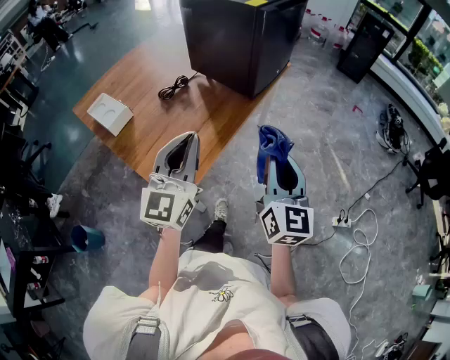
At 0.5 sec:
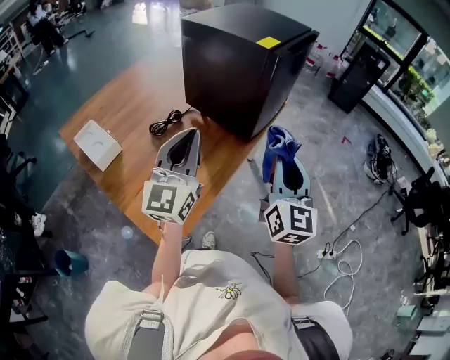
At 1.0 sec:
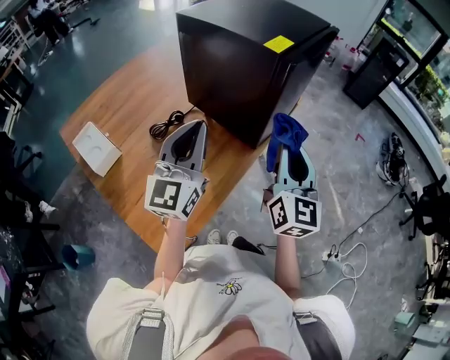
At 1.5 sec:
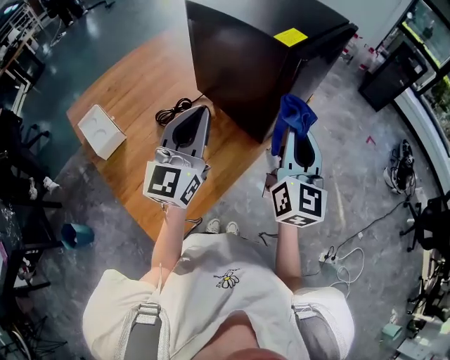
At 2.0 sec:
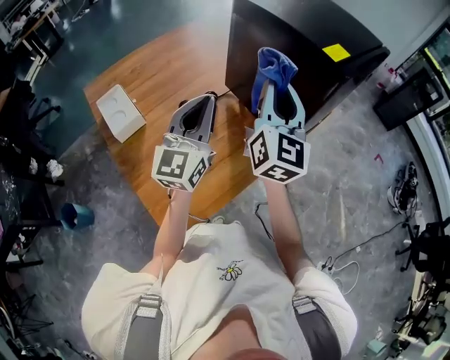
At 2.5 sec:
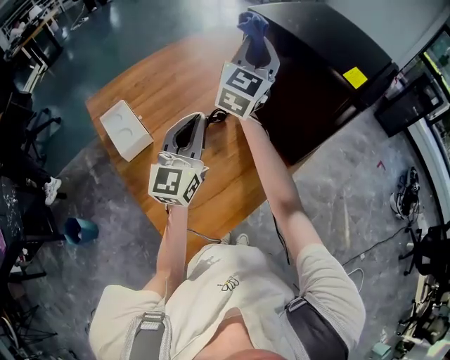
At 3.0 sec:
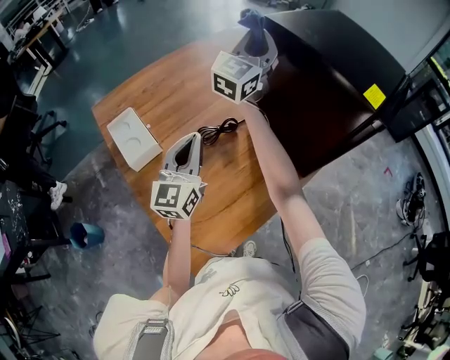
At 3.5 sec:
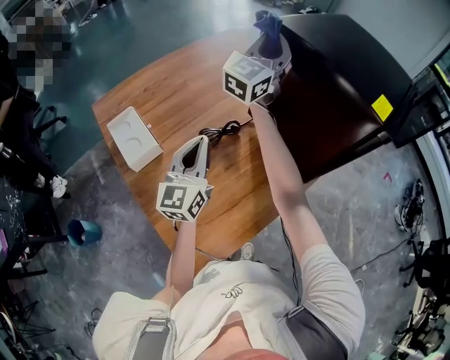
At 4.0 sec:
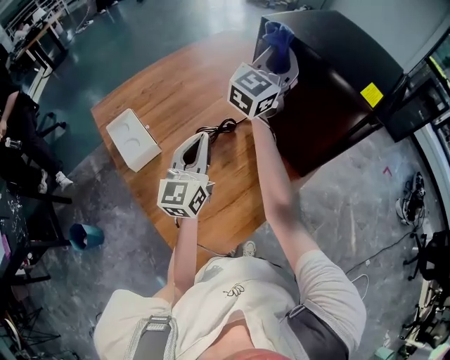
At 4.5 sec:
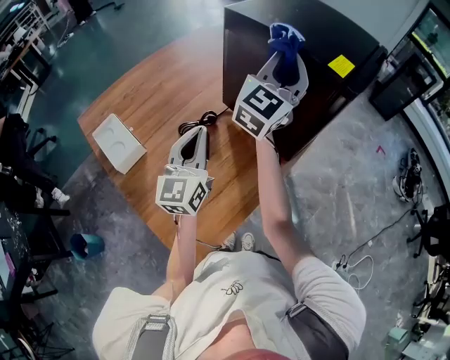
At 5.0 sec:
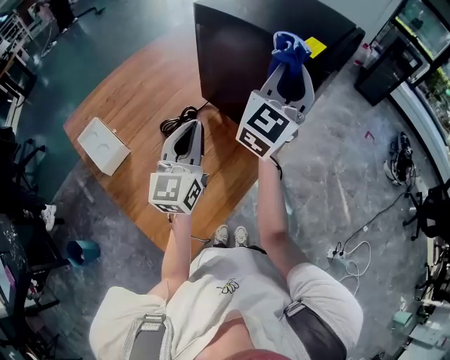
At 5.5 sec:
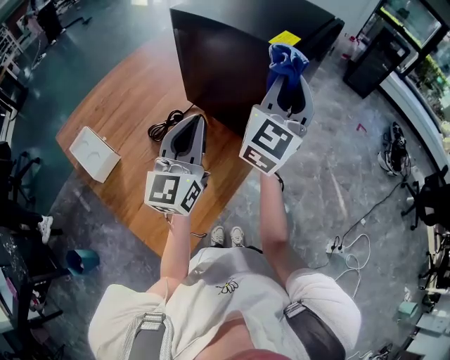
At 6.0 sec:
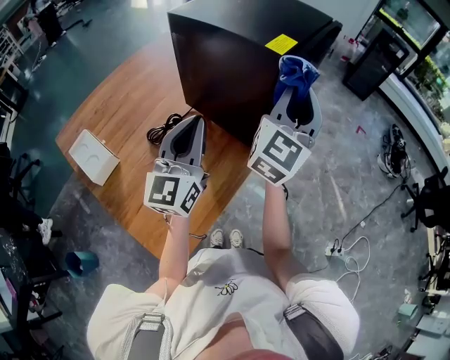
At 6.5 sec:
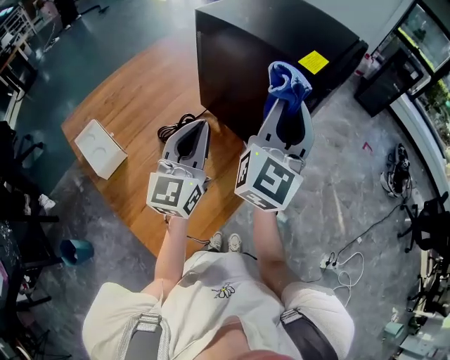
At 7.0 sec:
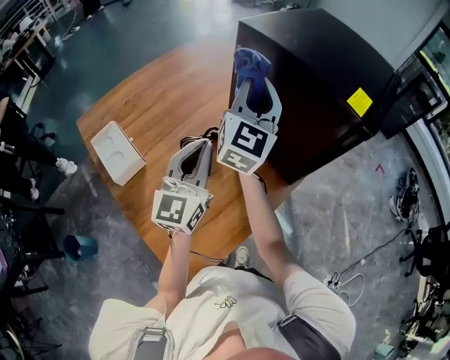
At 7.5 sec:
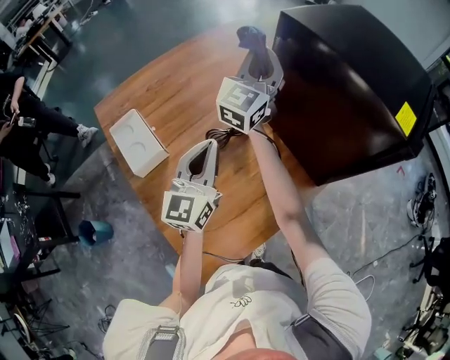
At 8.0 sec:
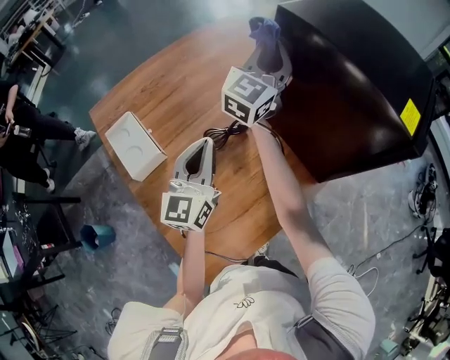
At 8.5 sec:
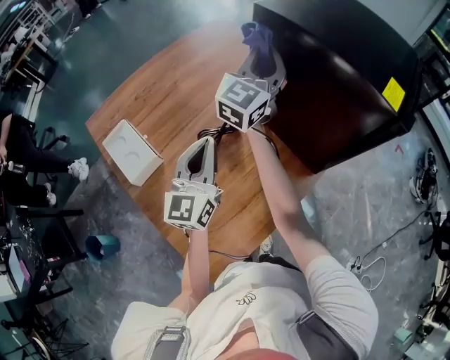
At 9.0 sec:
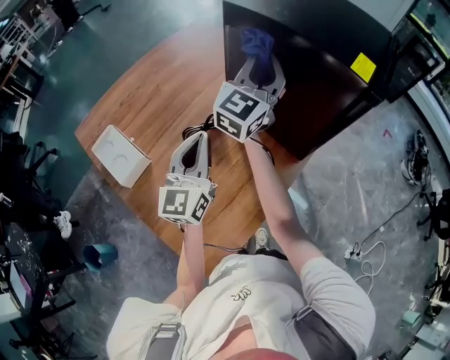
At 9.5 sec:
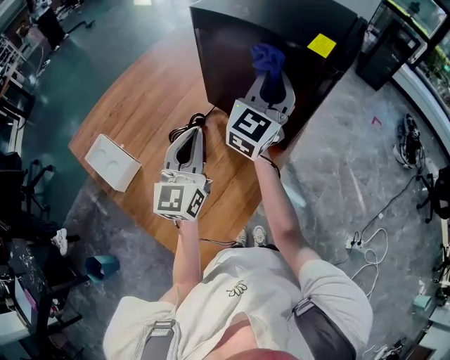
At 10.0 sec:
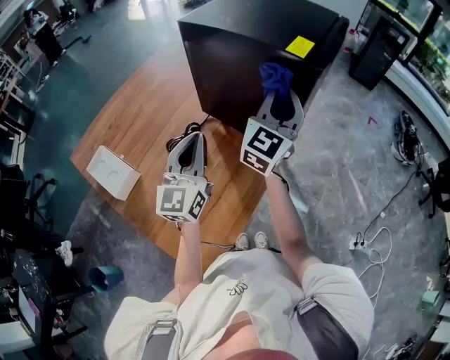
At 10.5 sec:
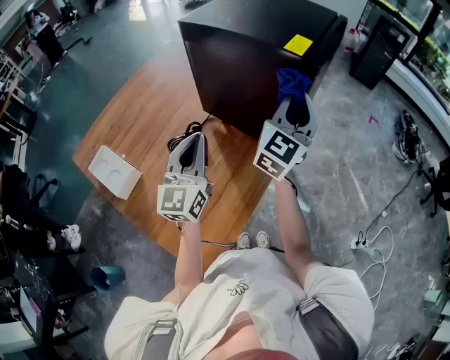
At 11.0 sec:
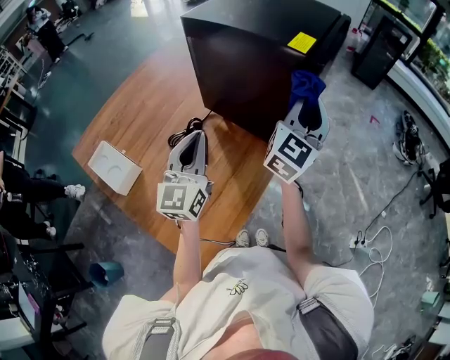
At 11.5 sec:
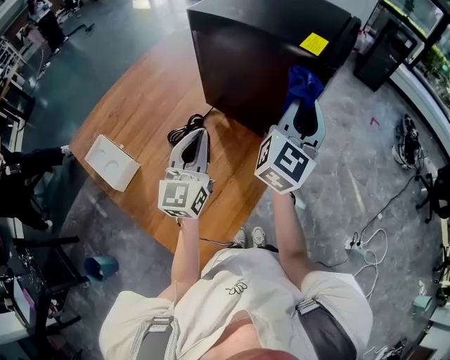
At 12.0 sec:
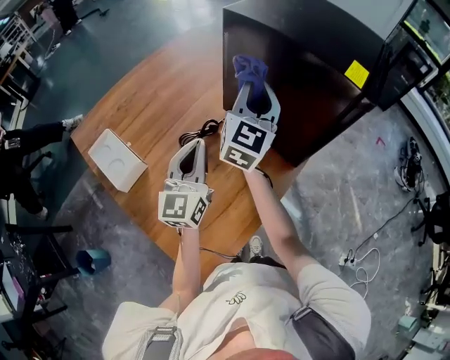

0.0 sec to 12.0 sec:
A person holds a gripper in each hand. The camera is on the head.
0.0 sec to 2.0 sec: The left gripper moves forward, about 30 cm, while the right gripper heads forward and to the left, covering some 40 cm.
2.0 sec to 4.0 sec: The right gripper goes approximately 20 cm forward and to the left, and swivels some 30 degrees; the left gripper shifts roughly 15 cm to the left and downward.
4.0 sec to 6.0 sec: The left gripper shifts some 20 cm to the right and upward. The right gripper goes about 30 cm to the right.
6.0 sec to 8.0 sec: The left gripper is displaced to the left and downward by approximately 25 cm. Meanwhile the right gripper is displaced to the left and forward by about 40 cm.
8.0 sec to 10.0 sec: The left gripper shifts roughly 15 cm to the right. Meanwhile the right gripper travels to the right and backward by approximately 30 cm.
10.0 sec to 12.0 sec: The left gripper shifts roughly 10 cm to the left. Meanwhile the right gripper moves to the left, roughly 15 cm.

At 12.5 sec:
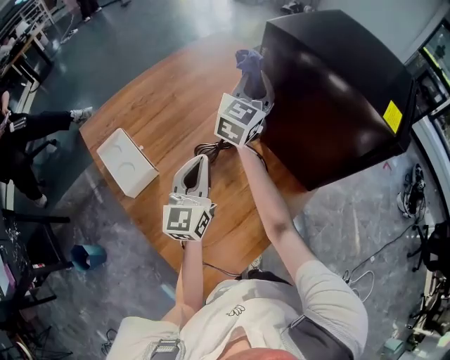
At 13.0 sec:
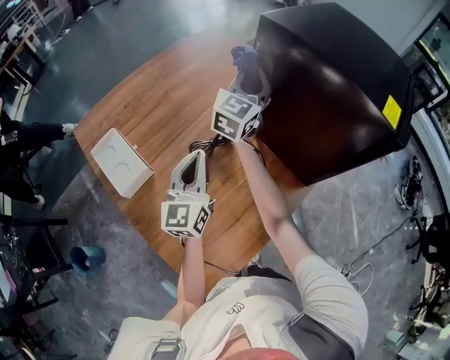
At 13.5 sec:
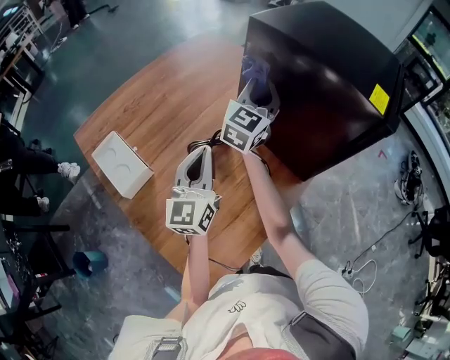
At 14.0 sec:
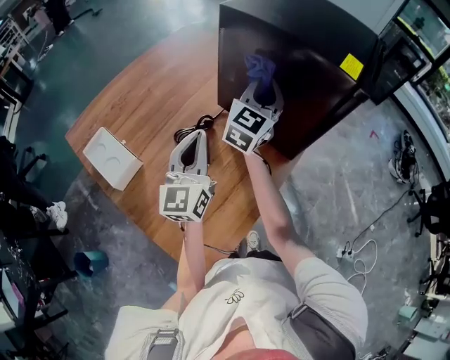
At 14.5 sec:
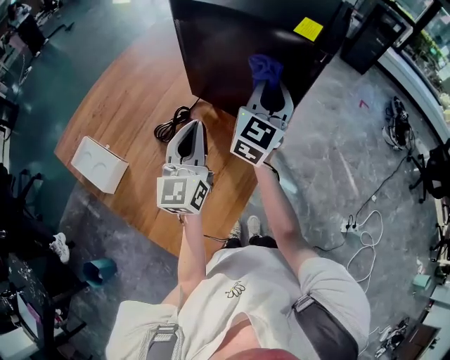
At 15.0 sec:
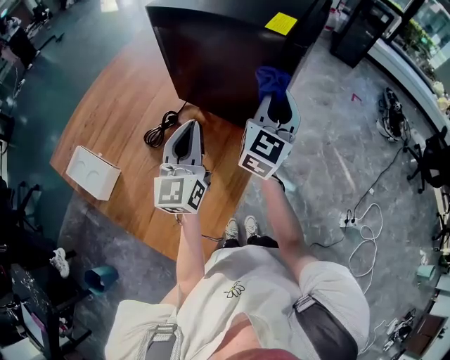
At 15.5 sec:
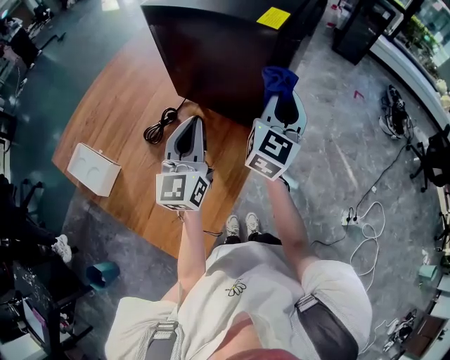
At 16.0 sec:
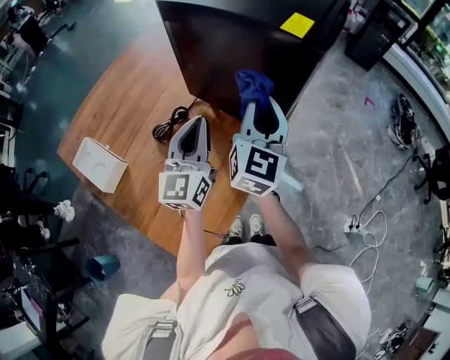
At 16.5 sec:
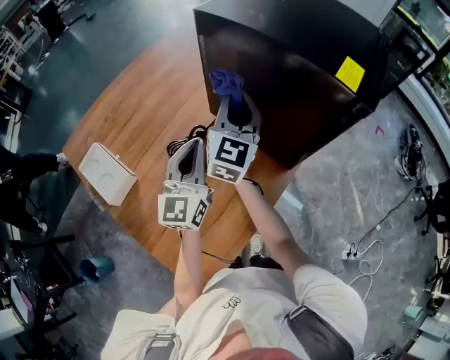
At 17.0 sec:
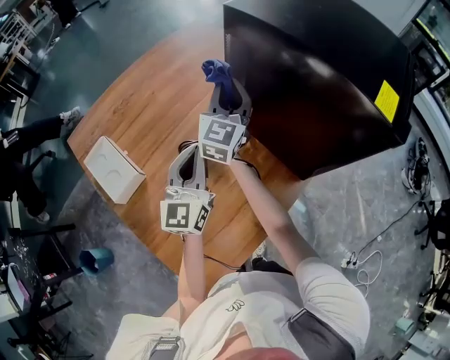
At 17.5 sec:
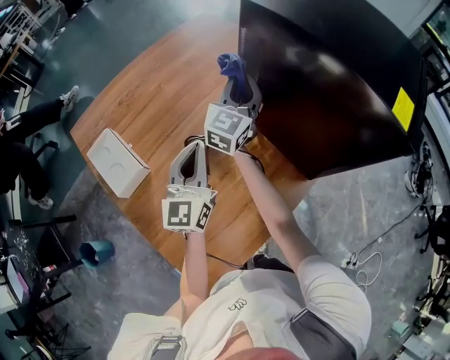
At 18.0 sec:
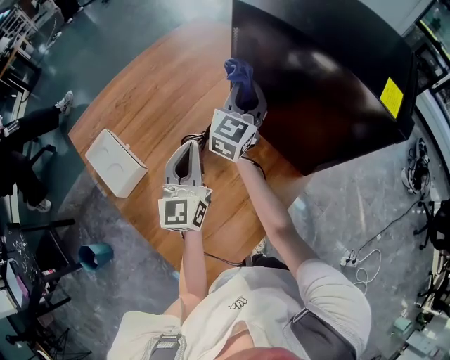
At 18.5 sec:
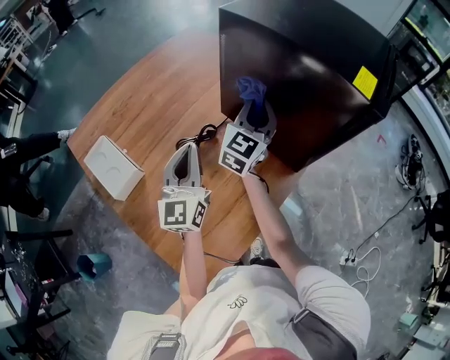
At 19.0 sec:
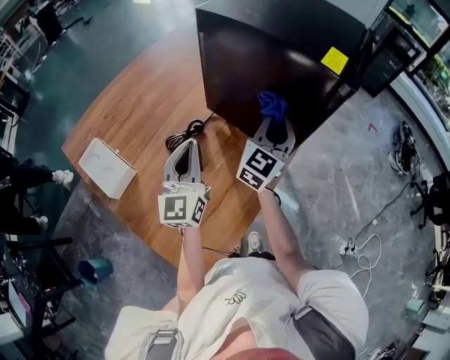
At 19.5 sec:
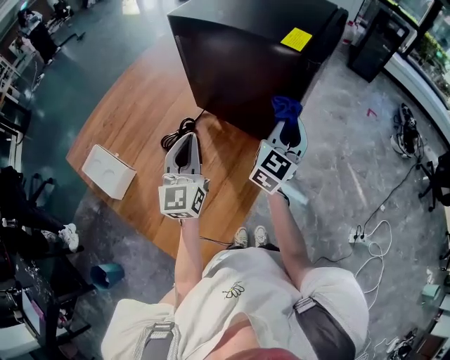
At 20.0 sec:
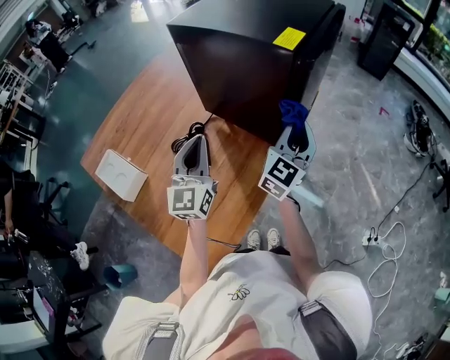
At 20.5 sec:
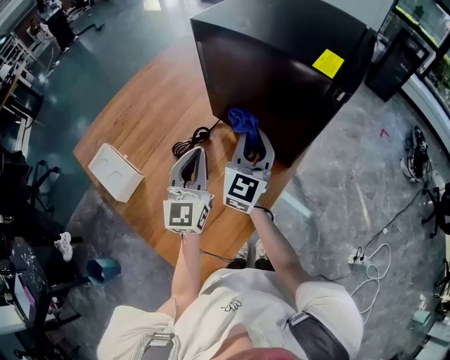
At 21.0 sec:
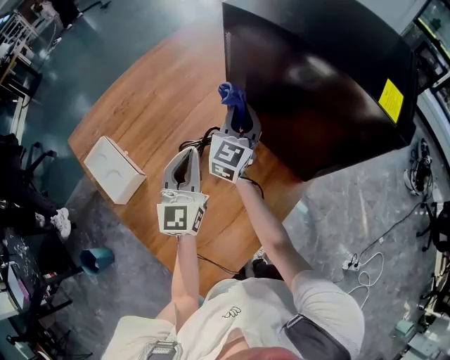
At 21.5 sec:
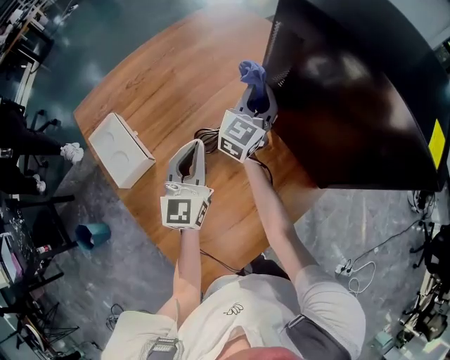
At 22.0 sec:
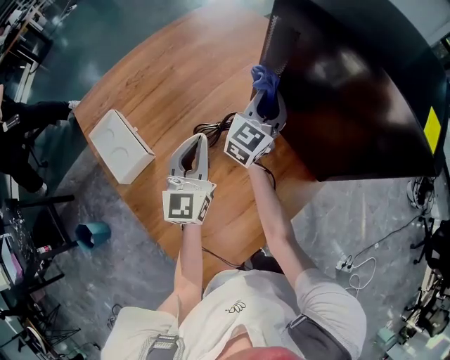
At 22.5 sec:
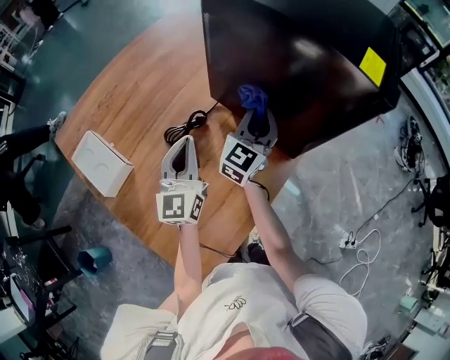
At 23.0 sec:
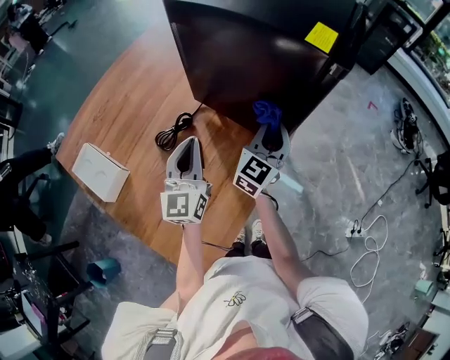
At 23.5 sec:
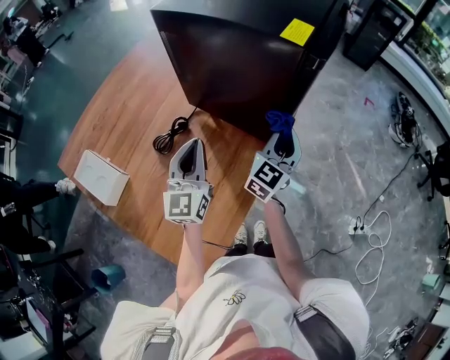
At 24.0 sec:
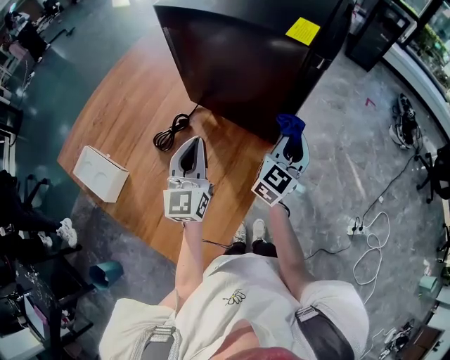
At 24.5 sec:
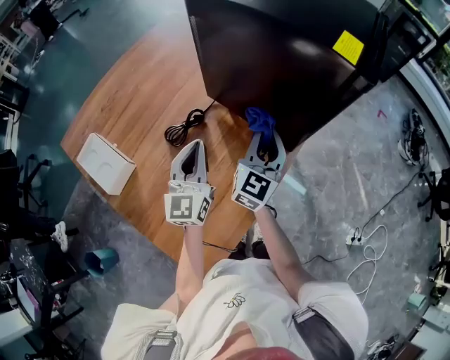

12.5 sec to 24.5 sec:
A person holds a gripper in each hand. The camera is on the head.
12.5 sec to 14.5 sec: The left gripper moves to the right, about 15 cm, while the right gripper goes approximately 25 cm to the right and backward.
14.5 sec to 16.5 sec: The left gripper moves roughly 5 cm; the right gripper is displaced to the left by some 15 cm, and swivels some 20 degrees.
16.5 sec to 18.5 sec: The right gripper moves some 10 cm to the left and comes back; the left gripper heads to the left, covering roughly 5 cm.
18.5 sec to 20.5 sec: The right gripper goes approximately 10 cm backward, and goes to the right and returns, about 25 cm each way, while the left gripper travels to the right by about 10 cm.
20.5 sec to 22.5 sec: The right gripper shifts roughly 10 cm forward and downward, while the left gripper goes about 10 cm to the left and downward.
22.5 sec to 24.5 sec: The right gripper heads backward, covering some 5 cm, and travels to the right and back again, about 20 cm each way. Meanwhile the left gripper moves to the right, approximately 5 cm.

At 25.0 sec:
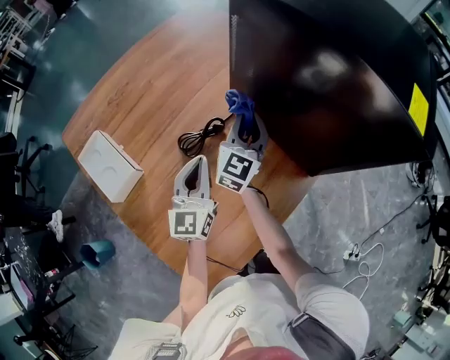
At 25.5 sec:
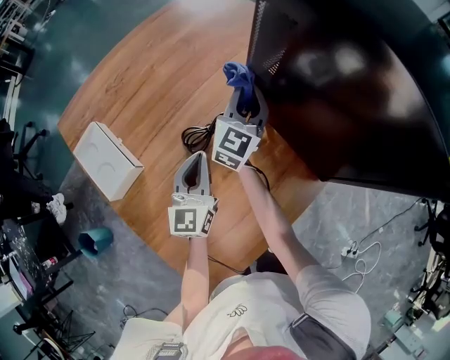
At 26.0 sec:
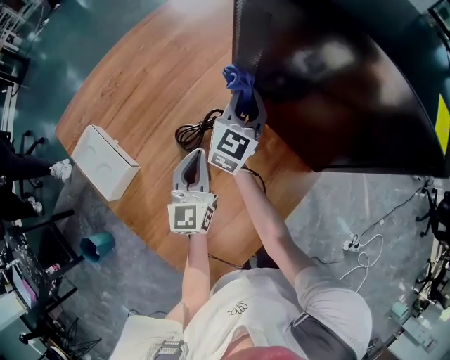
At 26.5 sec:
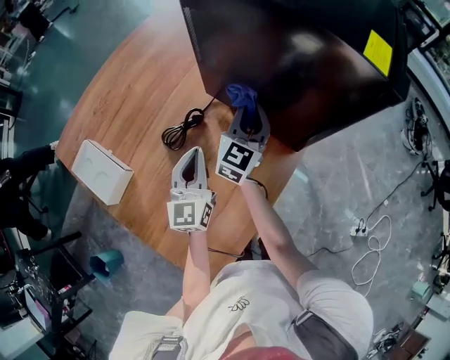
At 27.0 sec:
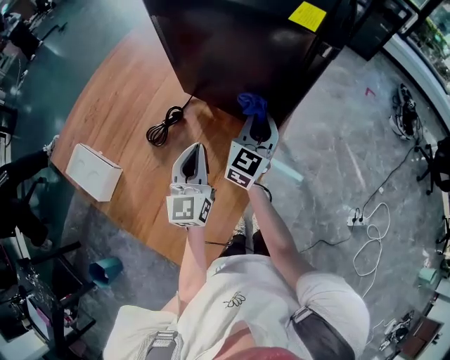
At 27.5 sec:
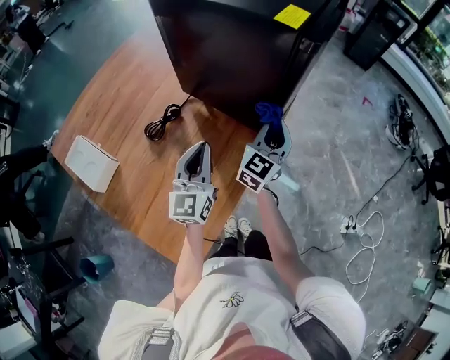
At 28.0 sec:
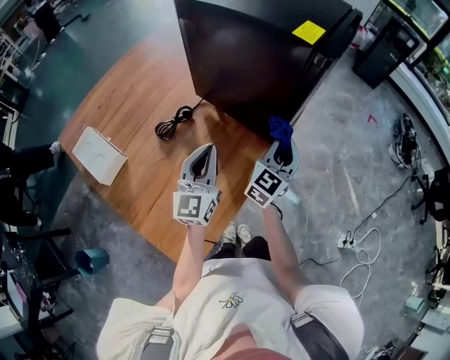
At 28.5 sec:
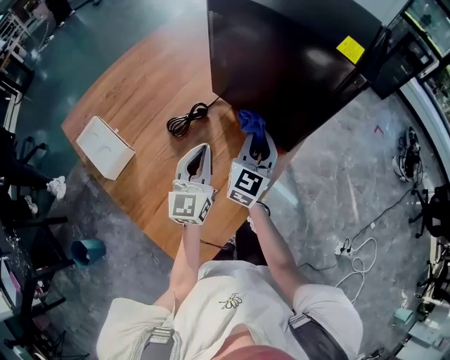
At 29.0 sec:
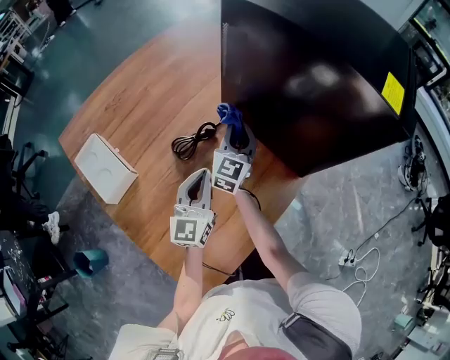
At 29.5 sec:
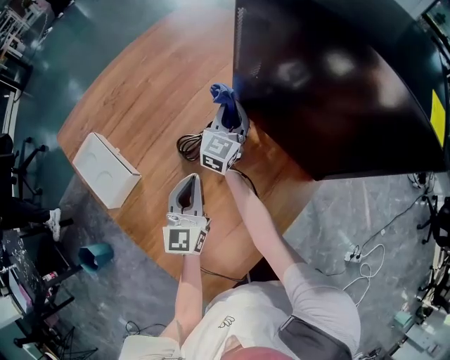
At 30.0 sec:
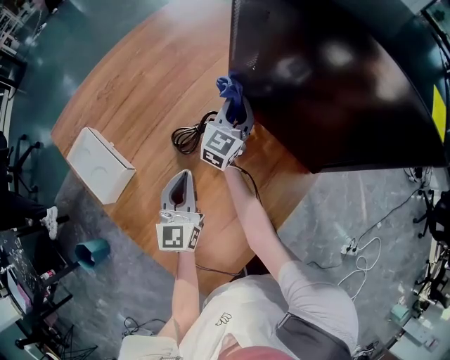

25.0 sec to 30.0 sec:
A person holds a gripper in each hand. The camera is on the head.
25.0 sec to 27.5 sec: The left gripper is displaced to the right by approximately 15 cm. The right gripper is displaced to the right by approximately 25 cm, and rotates roughly 20 degrees.
27.5 sec to 30.0 sec: The right gripper is displaced to the left and forward by about 35 cm, while the left gripper shifts some 20 cm to the left and downward.
